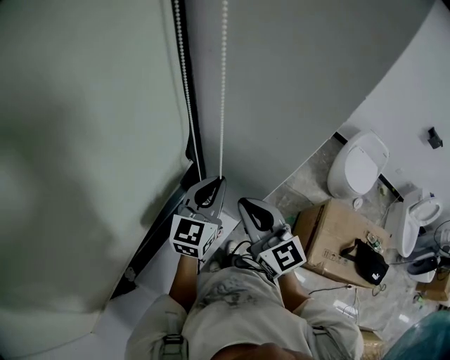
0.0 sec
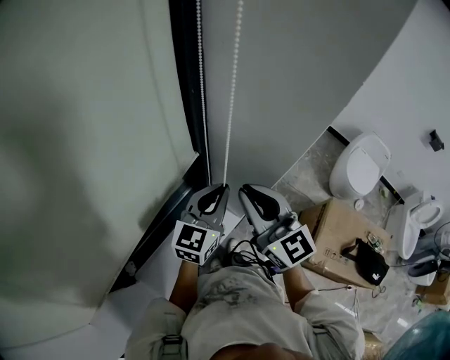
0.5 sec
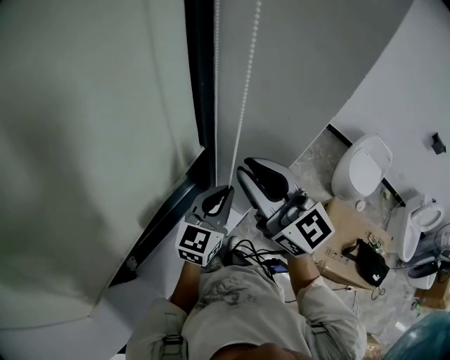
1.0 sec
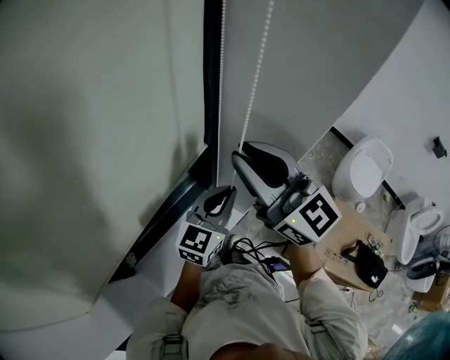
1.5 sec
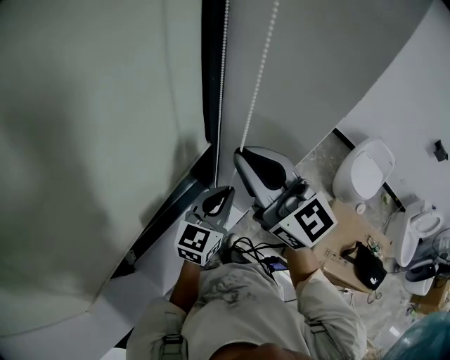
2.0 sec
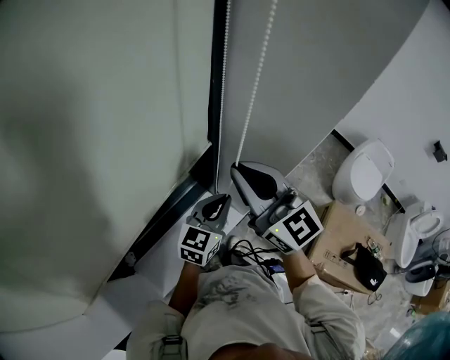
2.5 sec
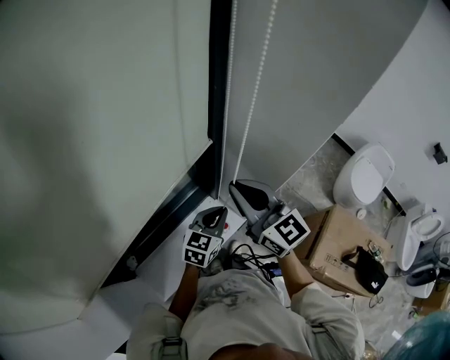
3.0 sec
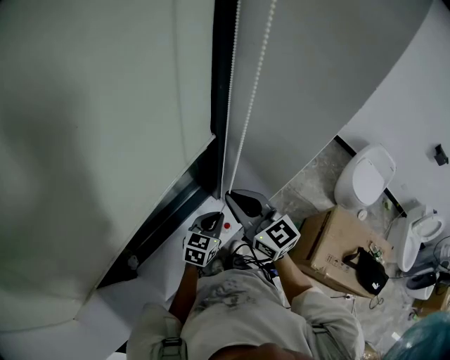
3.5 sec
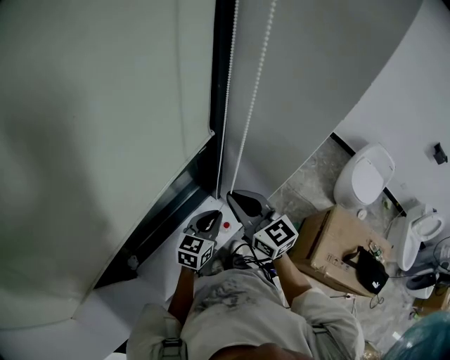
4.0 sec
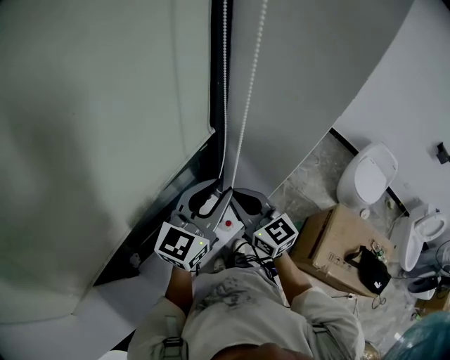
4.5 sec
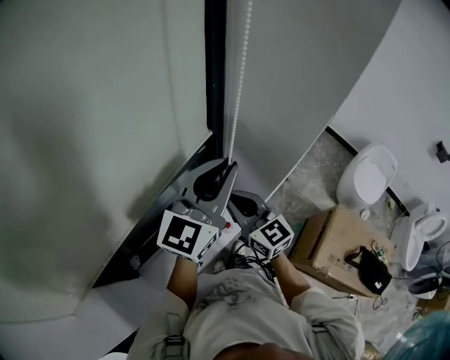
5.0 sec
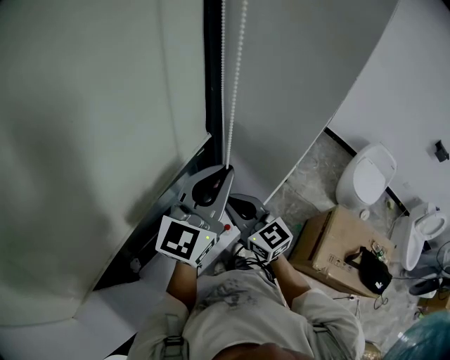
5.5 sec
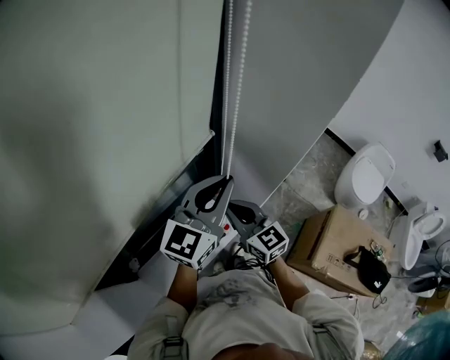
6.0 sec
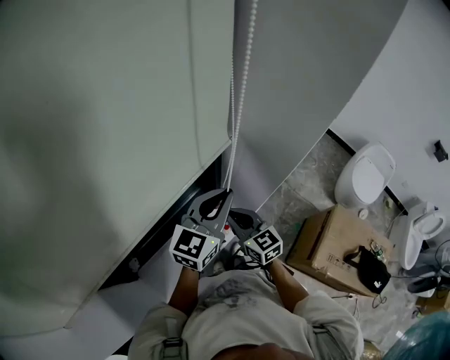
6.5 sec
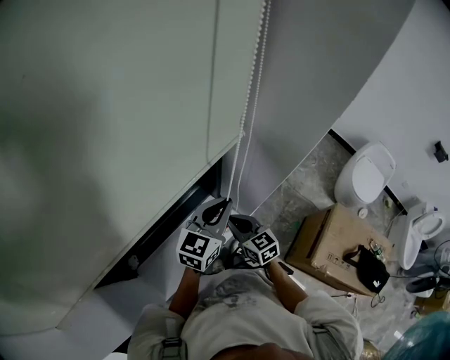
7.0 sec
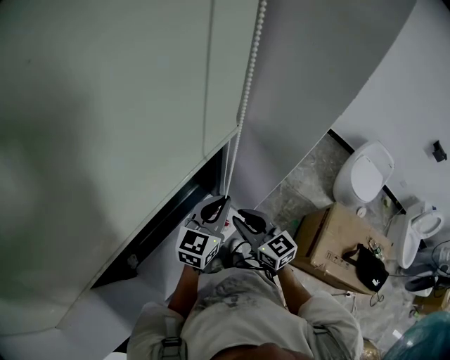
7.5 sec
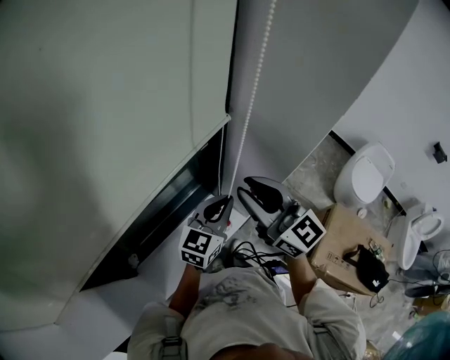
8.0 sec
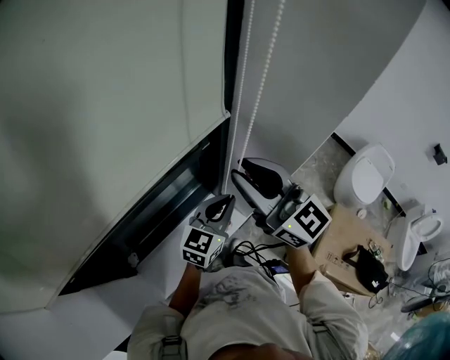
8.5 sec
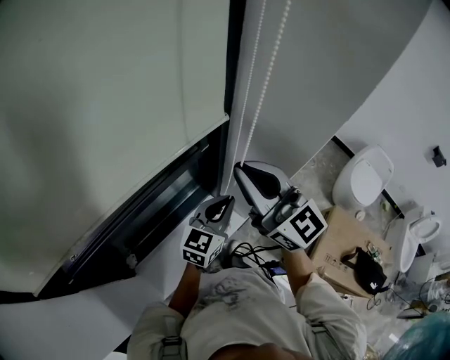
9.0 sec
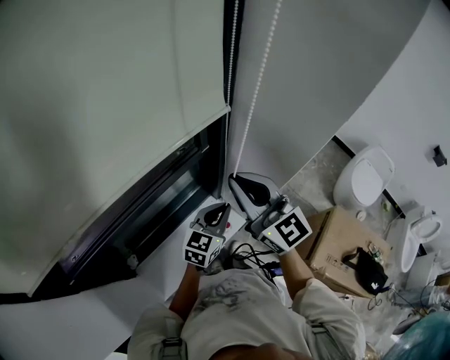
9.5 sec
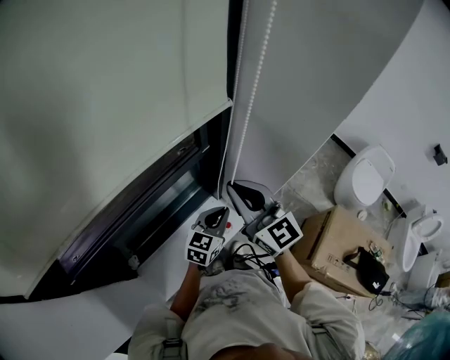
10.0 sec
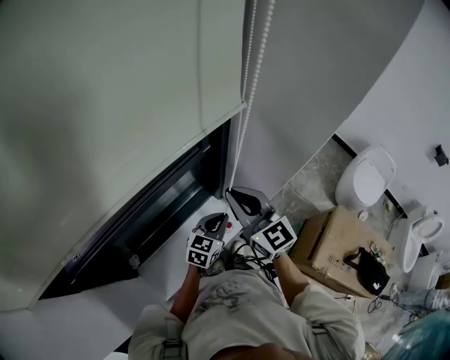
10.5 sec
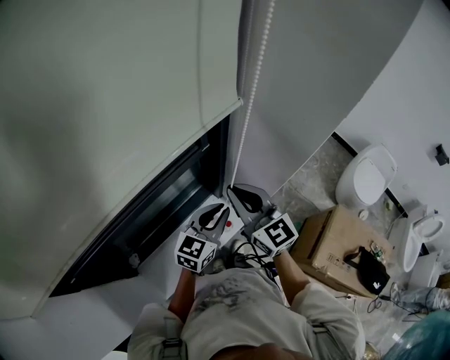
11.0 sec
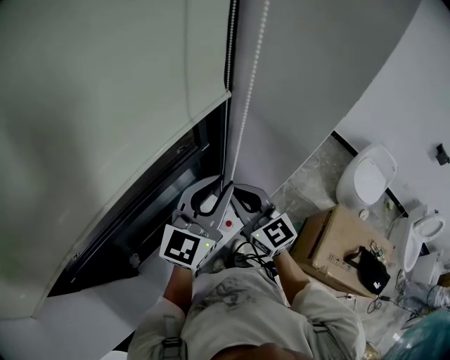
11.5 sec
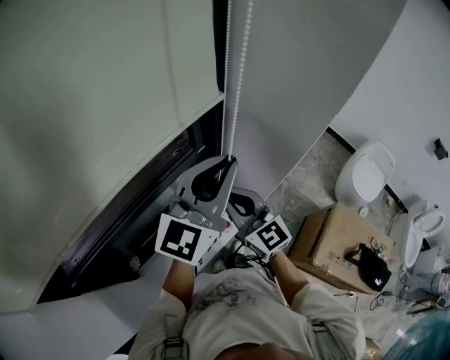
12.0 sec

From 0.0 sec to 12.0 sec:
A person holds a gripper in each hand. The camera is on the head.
From 0.0 sec to 2.0 sec: The right gripper shifts approximately 15 cm upward. Meanwhile the left gripper heads backward, covering about 5 cm.
From 2.0 sec to 4.0 sec: The grippers both shift downward by about 15 cm.
From 4.0 sec to 6.0 sec: The left gripper goes roughly 25 cm upward, rotates some 30 degrees, and opens and closes again.
From 6.0 sec to 8.0 sec: The right gripper heads upward, covering roughly 15 cm, and opens its fingers. The left gripper travels downward by approximately 15 cm.
From 8.0 sec to 10.0 sec: The left gripper moves downward, some 10 cm, while the right gripper closes.
From 10.0 sec to 12.0 sec: The left gripper goes about 30 cm upward, and points its fingers approximately 30 degrees further upward.

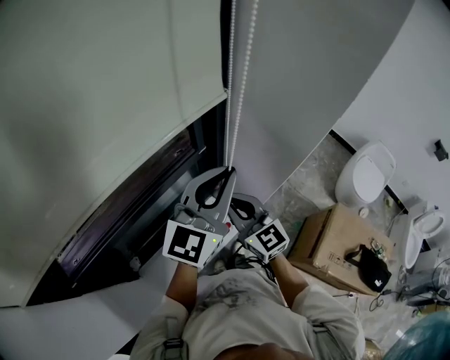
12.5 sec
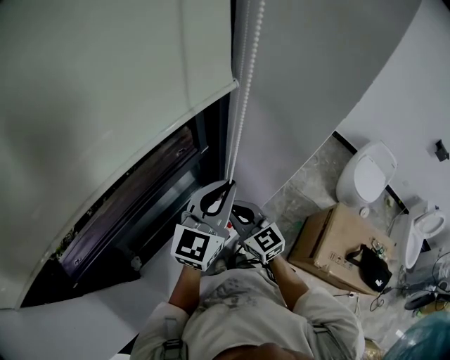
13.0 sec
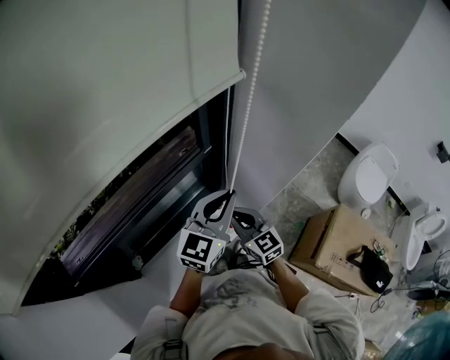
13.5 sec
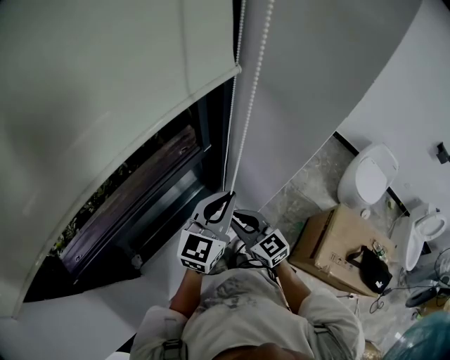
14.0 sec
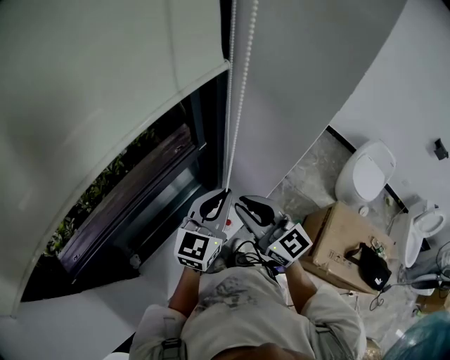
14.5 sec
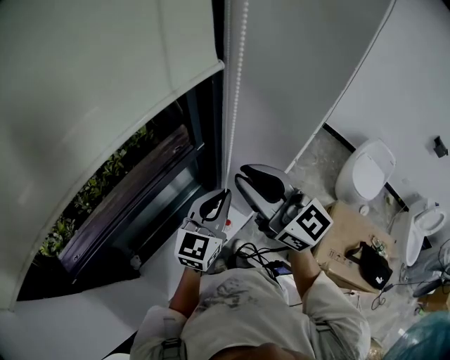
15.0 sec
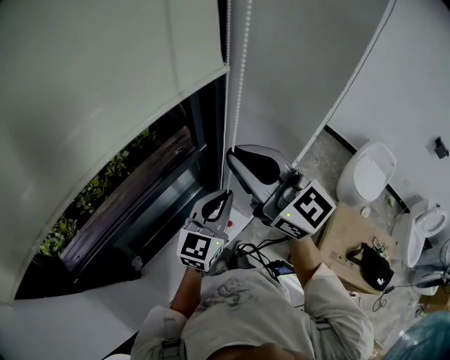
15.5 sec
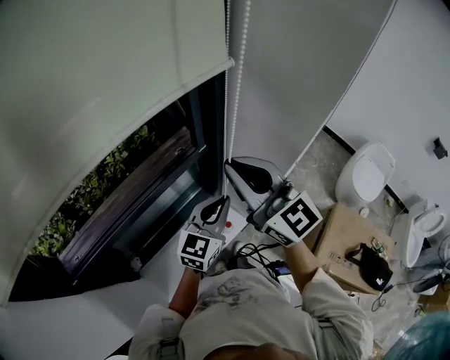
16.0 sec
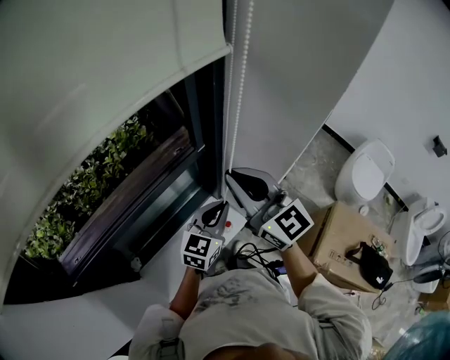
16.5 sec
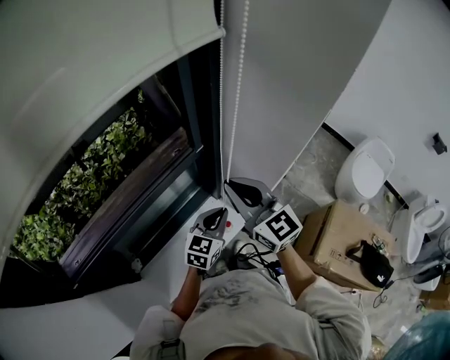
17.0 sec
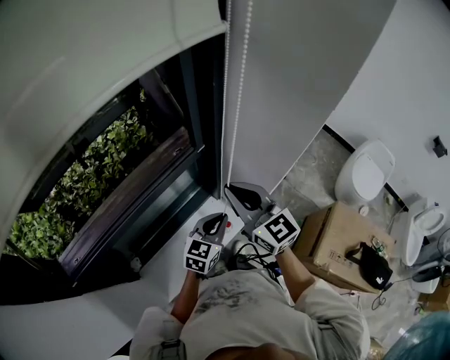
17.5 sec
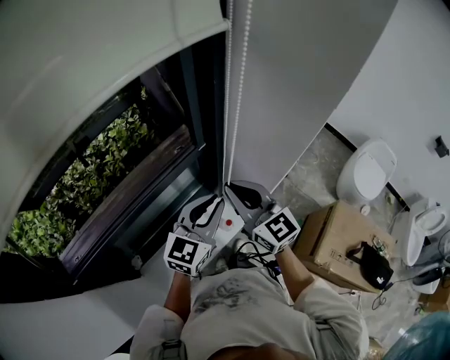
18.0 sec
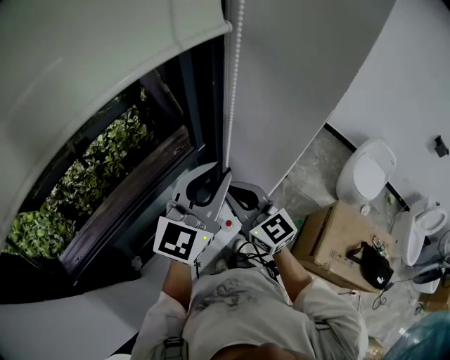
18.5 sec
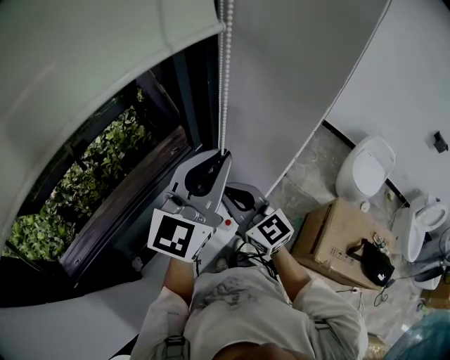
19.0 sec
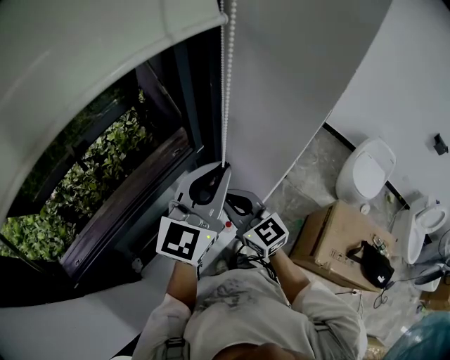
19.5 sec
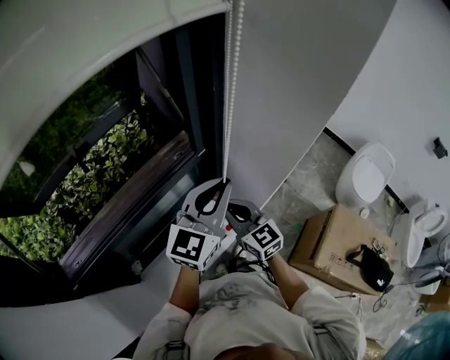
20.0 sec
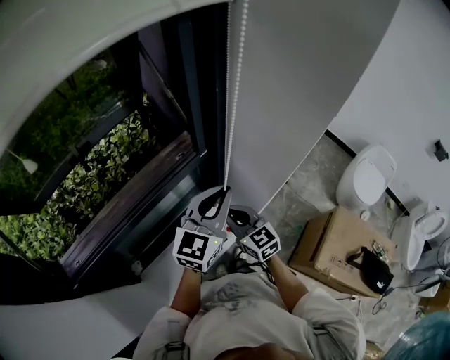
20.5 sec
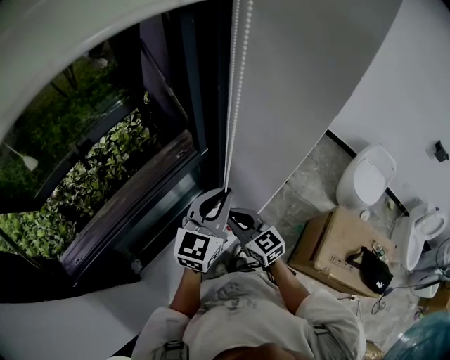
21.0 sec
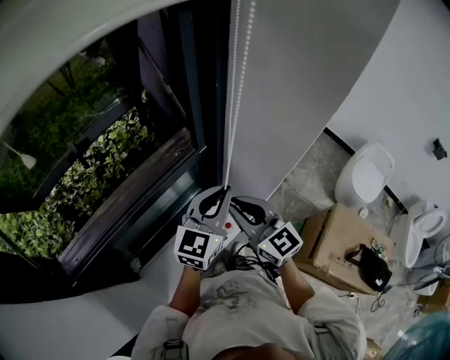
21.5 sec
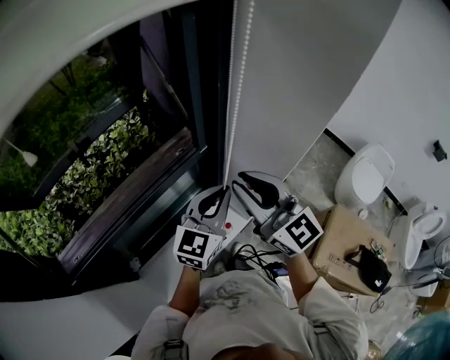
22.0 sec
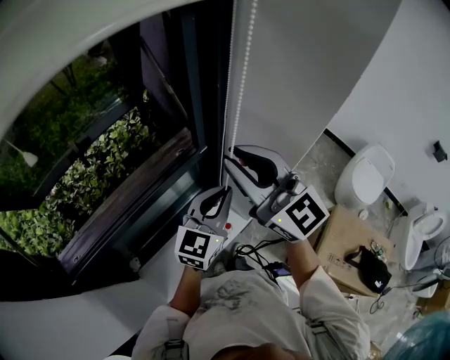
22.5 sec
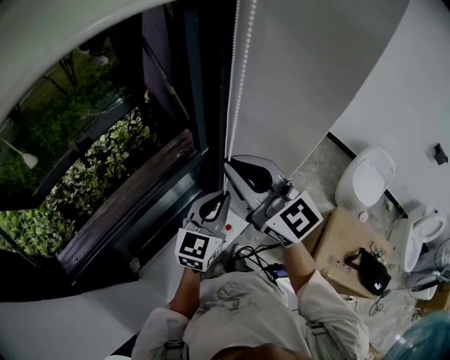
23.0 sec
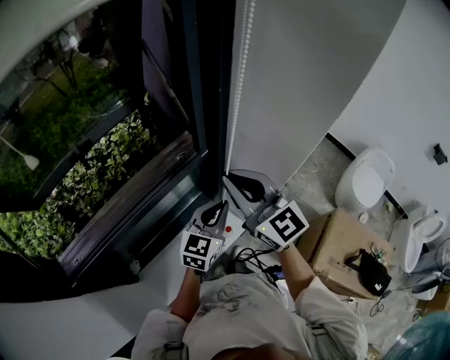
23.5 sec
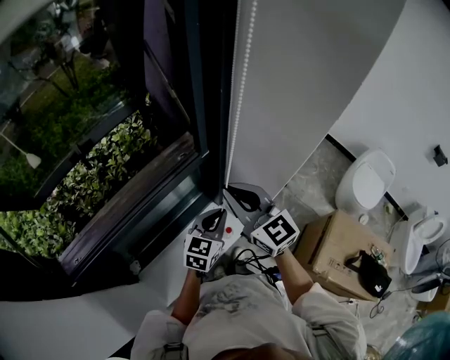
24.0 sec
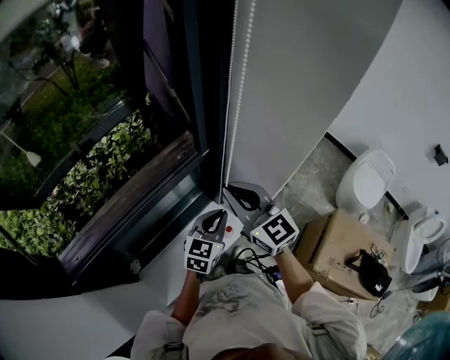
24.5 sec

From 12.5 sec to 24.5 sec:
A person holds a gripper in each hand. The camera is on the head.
From 12.5 sec to 14.5 sec: The left gripper heads downward, covering some 10 cm, while the right gripper reaches approximately 10 cm downward, then returns.
From 14.5 sec to 16.5 sec: The right gripper shifts approximately 10 cm upward. Meanwhile the left gripper heads downward, covering approximately 10 cm.
From 16.5 sec to 18.5 sec: The right gripper travels downward by about 5 cm; the left gripper goes some 20 cm upward, and swivels approximately 20 degrees.
From 18.5 sec to 20.5 sec: The two grippers go some 10 cm downward.
From 20.5 sec to 22.5 sec: The right gripper heads upward, covering approximately 30 cm, and rotates about 30 degrees.
From 22.5 sec to 24.5 sec: Both grippers move downward, approximately 15 cm.

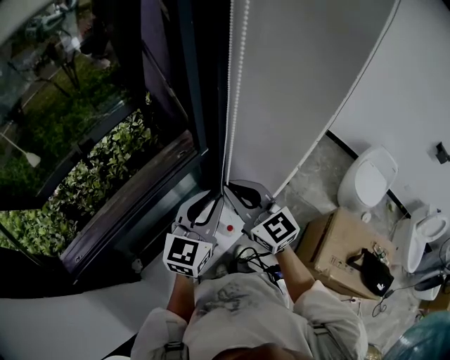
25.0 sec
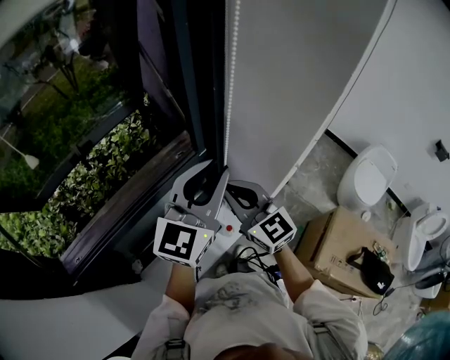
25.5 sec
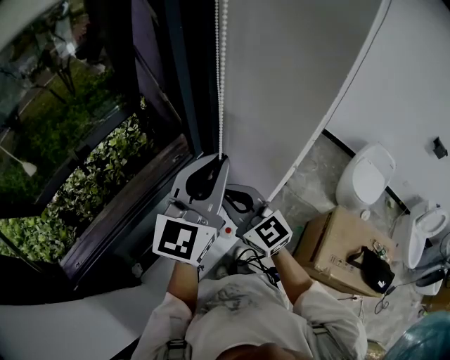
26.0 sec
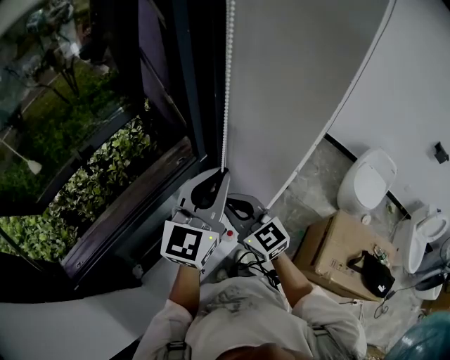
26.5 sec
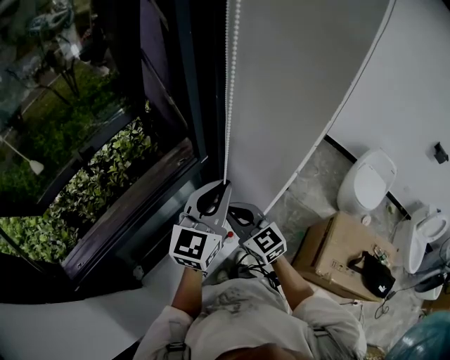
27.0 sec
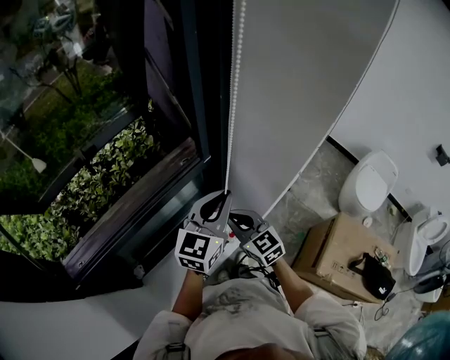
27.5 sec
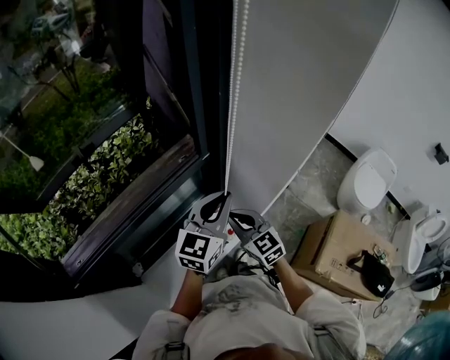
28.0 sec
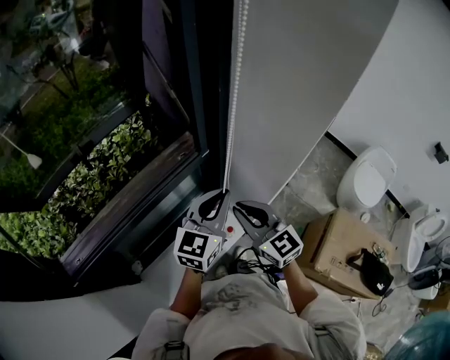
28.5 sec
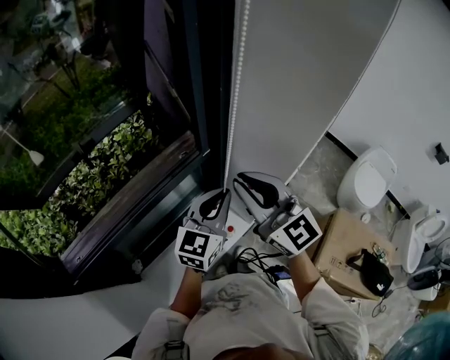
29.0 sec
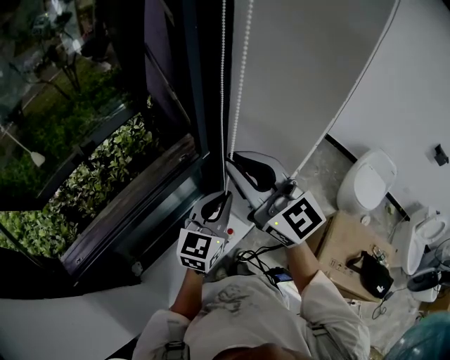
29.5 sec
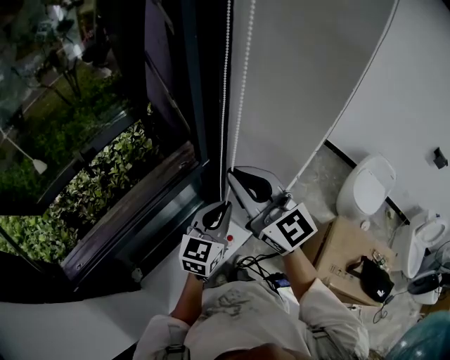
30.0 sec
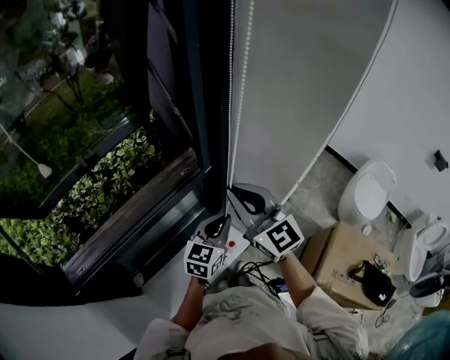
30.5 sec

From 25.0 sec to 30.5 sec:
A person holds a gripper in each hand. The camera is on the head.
From 25.0 sec to 27.0 sec: The left gripper moves roughly 15 cm upward and comes back. The right gripper travels downward by some 10 cm.
From 27.0 sec to 28.5 sec: The right gripper goes downward and returns, about 5 cm each way, while the left gripper shifts roughly 5 cm downward.
From 28.5 sec to 30.5 sec: The left gripper is displaced downward by some 10 cm; the right gripper goes roughly 10 cm upward.
